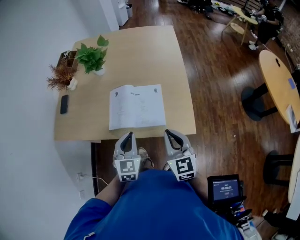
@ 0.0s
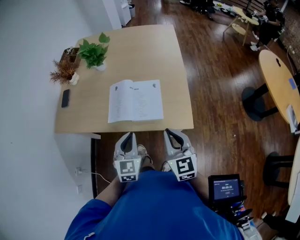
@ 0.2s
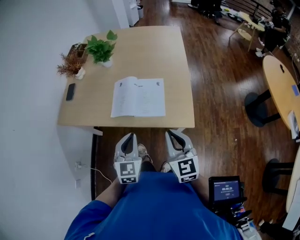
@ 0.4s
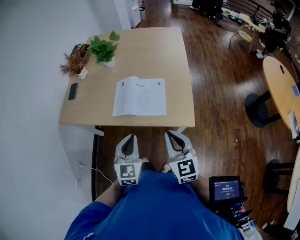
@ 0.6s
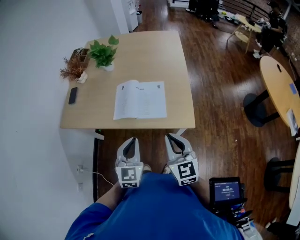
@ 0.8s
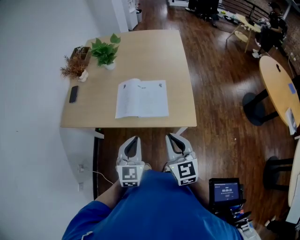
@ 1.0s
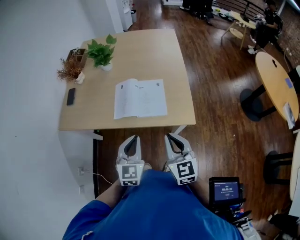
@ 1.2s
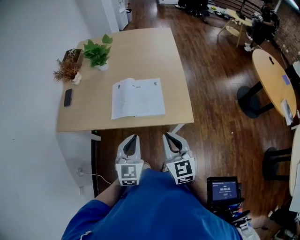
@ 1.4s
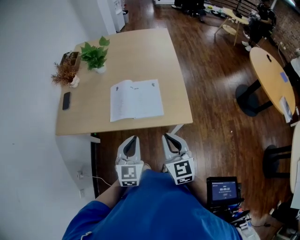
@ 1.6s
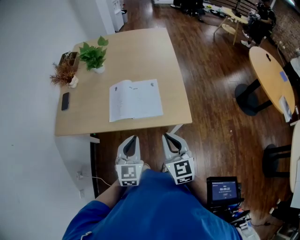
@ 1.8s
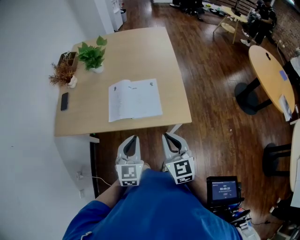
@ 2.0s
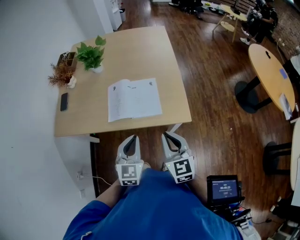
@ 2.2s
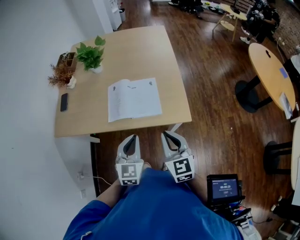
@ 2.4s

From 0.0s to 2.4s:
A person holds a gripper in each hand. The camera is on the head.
From 0.0s to 1.2s: The grippers both shift backward by approximately 10 cm.
From 1.2s to 2.4s: The grippers move only a little.

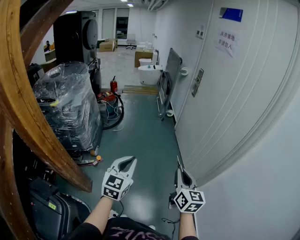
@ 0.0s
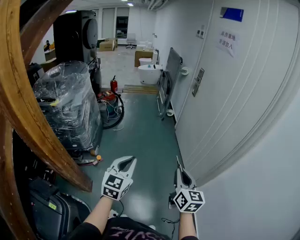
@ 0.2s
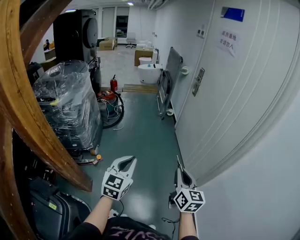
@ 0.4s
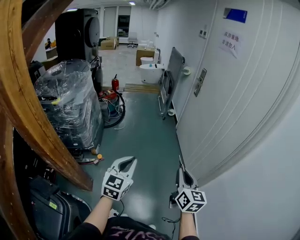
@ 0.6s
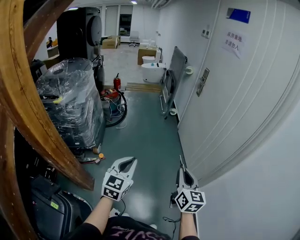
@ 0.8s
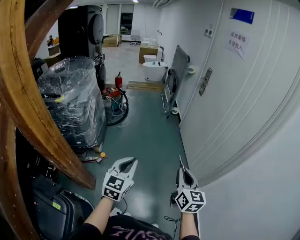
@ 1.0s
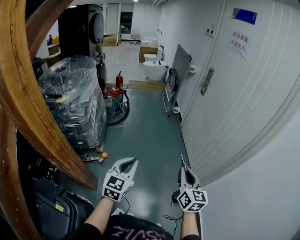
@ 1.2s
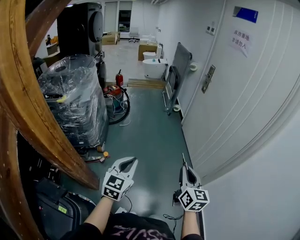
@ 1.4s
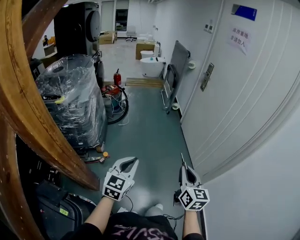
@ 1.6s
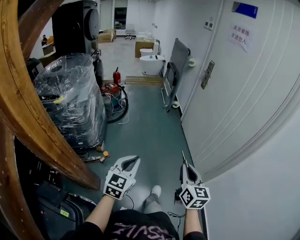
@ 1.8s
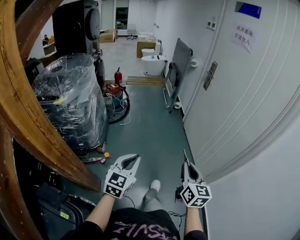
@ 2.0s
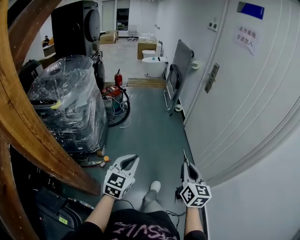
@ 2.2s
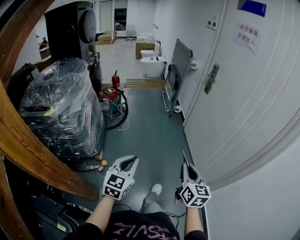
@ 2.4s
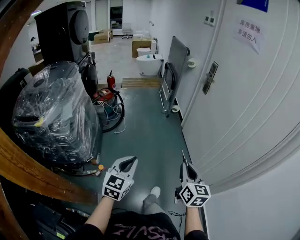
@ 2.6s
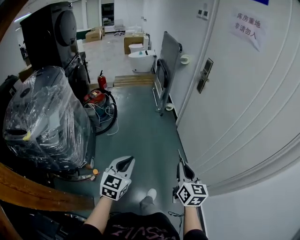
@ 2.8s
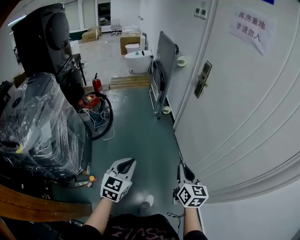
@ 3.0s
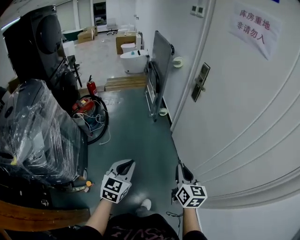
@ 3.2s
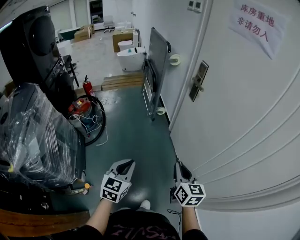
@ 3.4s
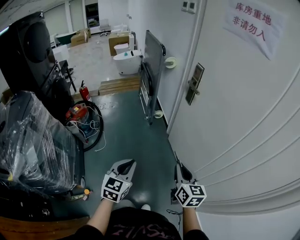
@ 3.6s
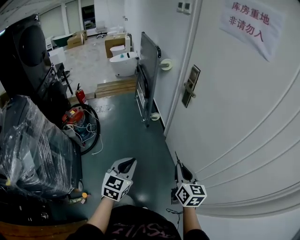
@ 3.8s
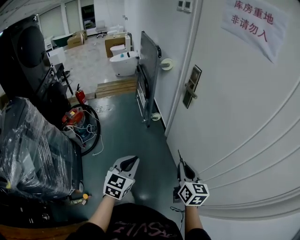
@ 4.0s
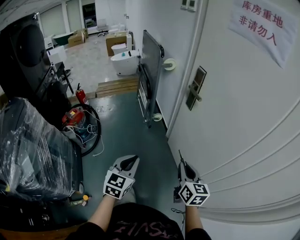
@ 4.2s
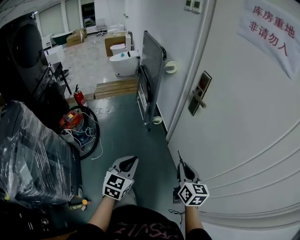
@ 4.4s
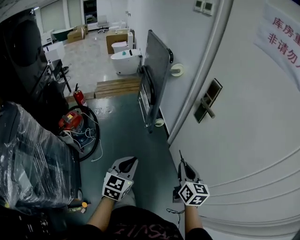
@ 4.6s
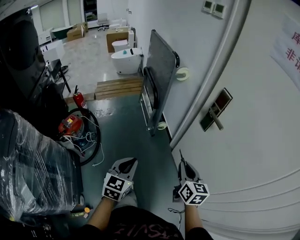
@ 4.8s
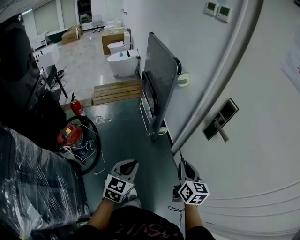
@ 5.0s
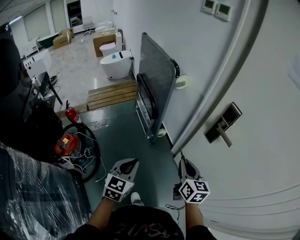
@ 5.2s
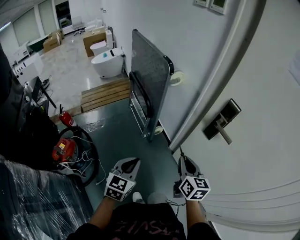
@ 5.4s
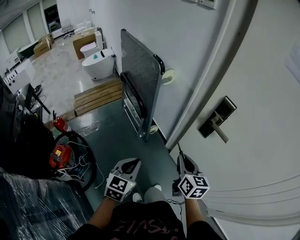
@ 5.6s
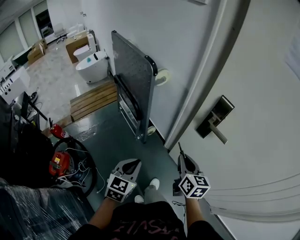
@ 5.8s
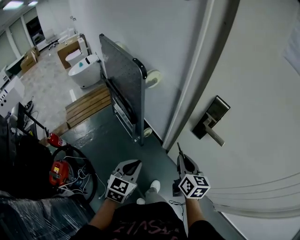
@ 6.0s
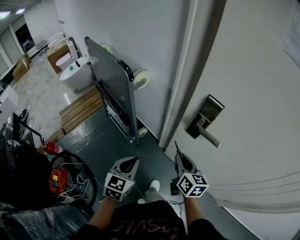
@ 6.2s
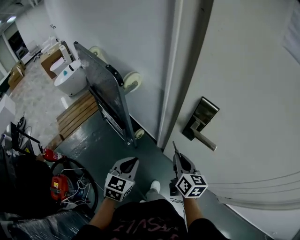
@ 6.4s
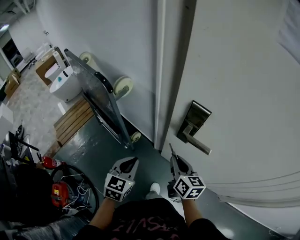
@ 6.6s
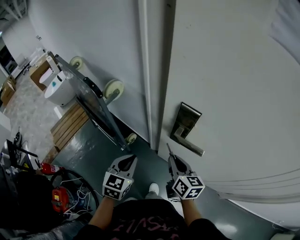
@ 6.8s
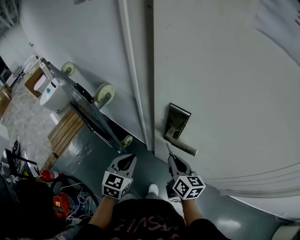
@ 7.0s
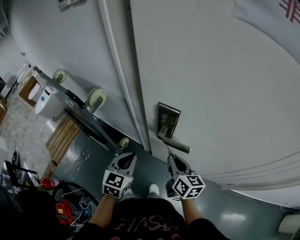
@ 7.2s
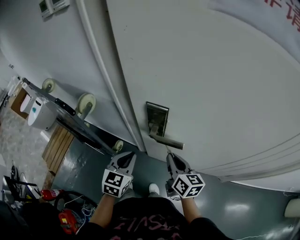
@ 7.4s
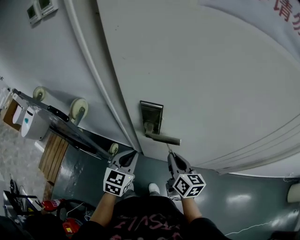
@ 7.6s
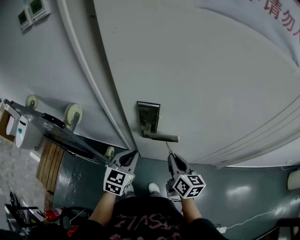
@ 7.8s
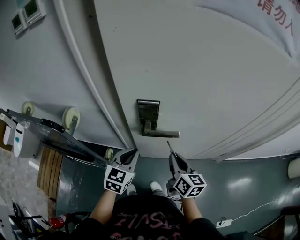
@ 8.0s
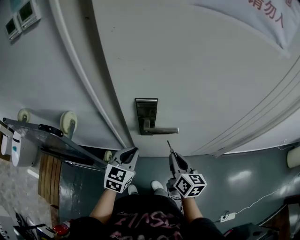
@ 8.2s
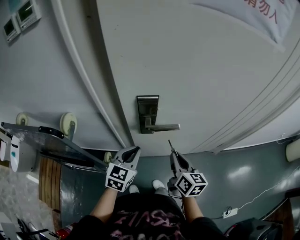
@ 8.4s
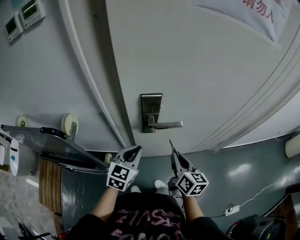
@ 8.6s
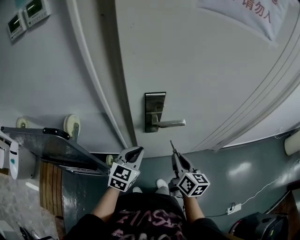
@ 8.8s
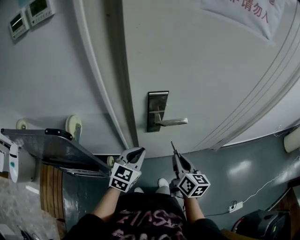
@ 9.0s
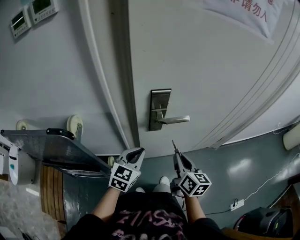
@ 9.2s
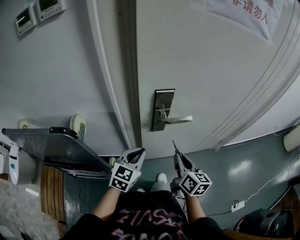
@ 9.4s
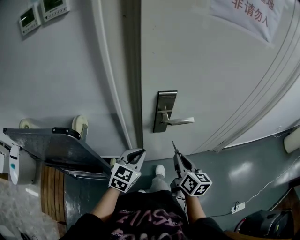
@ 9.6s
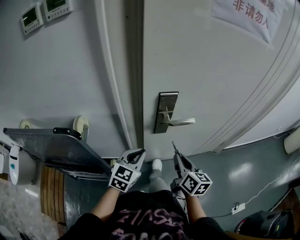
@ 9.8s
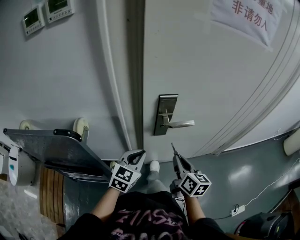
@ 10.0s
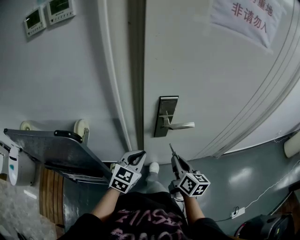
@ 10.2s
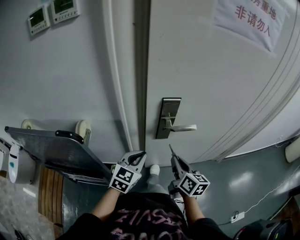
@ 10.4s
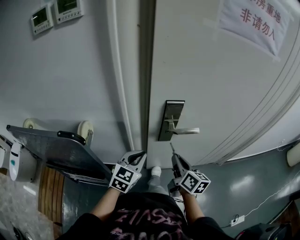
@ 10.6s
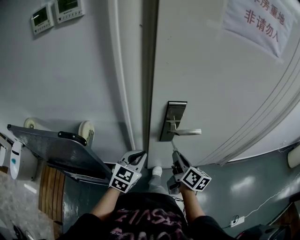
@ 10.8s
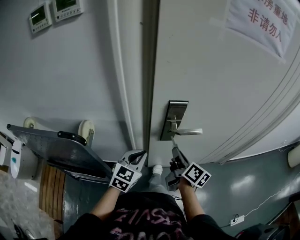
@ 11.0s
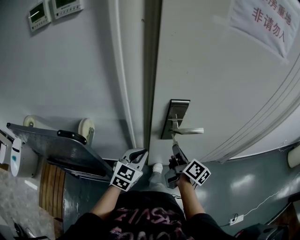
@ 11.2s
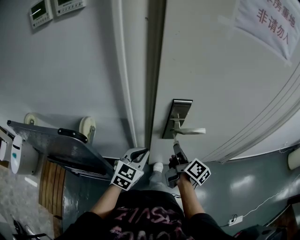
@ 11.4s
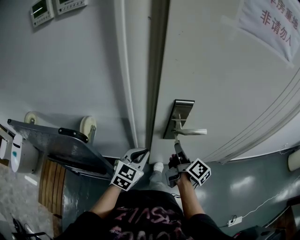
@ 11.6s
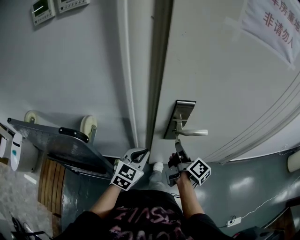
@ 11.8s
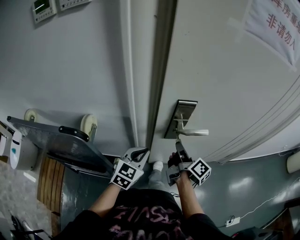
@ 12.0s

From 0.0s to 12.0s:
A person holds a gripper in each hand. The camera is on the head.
From 0.0s to 1.6s: Both grippers move to the left, about 10 cm.
From 1.6s to 3.0s: The grippers both shift forward by some 35 cm.
From 3.0s to 4.4s: The grippers both shift forward by approximately 25 cm.
From 4.4s to 6.0s: The left gripper moves forward, about 30 cm, and changes its angle by roughly 30 degrees, while the right gripper travels forward and to the left by approximately 30 cm, and rotates about 20 degrees.
From 6.0s to 7.6s: The right gripper ends up some 15 cm from where it was, and rotates about 30 degrees. Meanwhile the left gripper ends up some 25 cm from where it was, and swivels about 30 degrees.
From 7.6s to 9.0s: The left gripper swivels some 30 degrees, while the right gripper ends up roughly 10 cm from where it was, and turns by some 30 degrees.
From 9.0s to 10.4s: The right gripper shifts by approximately 5 cm.
From 10.4s to 12.0s: The right gripper goes some 10 cm forward, and rotates around the line of its fingers by some 40 degrees, clockwise from behind.

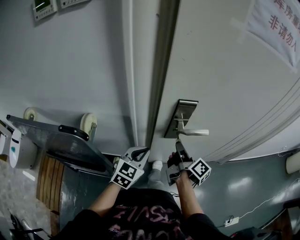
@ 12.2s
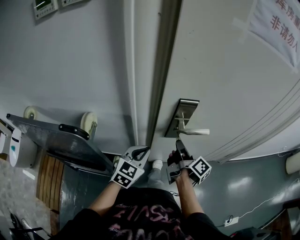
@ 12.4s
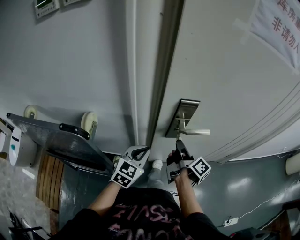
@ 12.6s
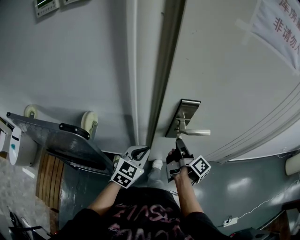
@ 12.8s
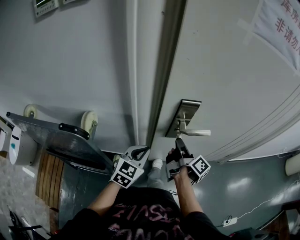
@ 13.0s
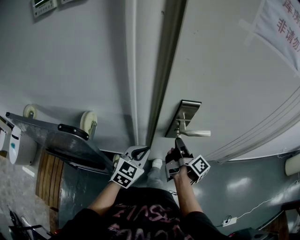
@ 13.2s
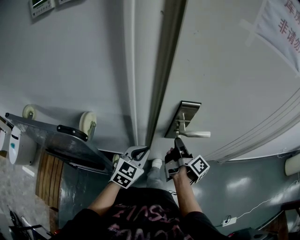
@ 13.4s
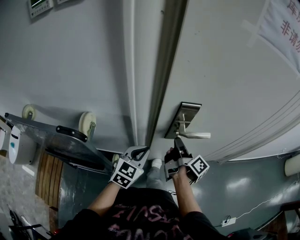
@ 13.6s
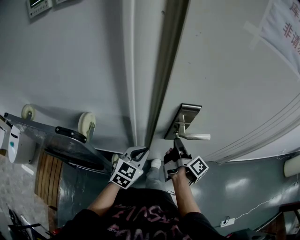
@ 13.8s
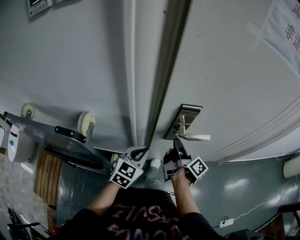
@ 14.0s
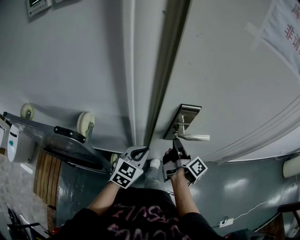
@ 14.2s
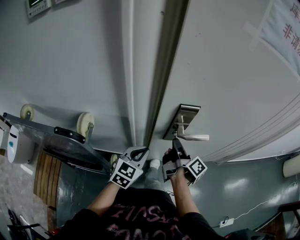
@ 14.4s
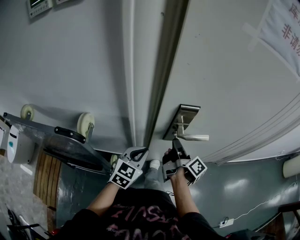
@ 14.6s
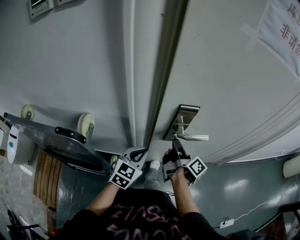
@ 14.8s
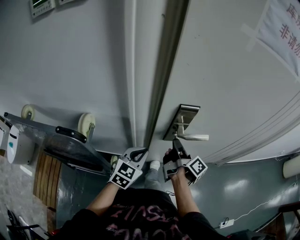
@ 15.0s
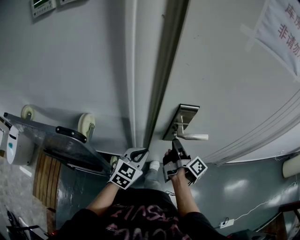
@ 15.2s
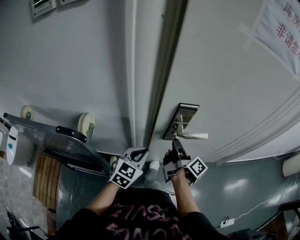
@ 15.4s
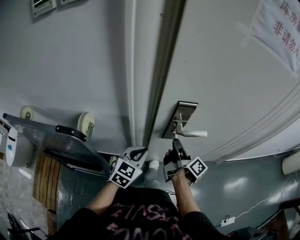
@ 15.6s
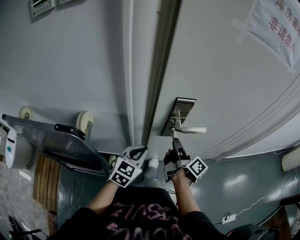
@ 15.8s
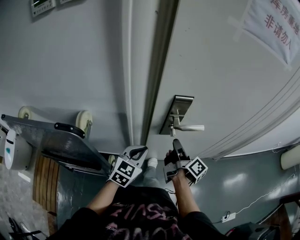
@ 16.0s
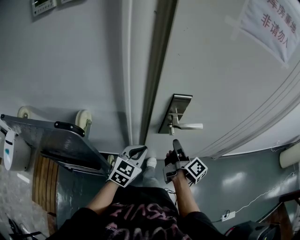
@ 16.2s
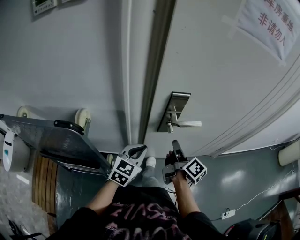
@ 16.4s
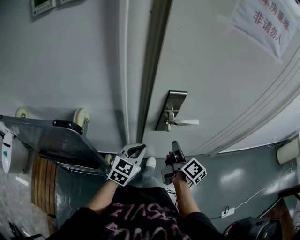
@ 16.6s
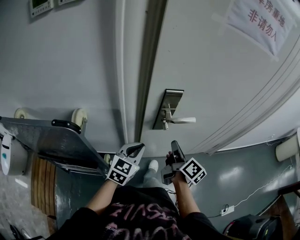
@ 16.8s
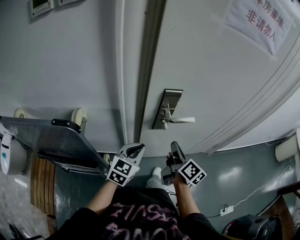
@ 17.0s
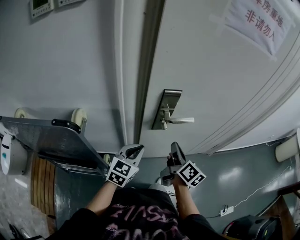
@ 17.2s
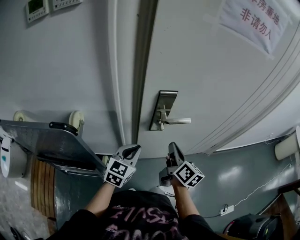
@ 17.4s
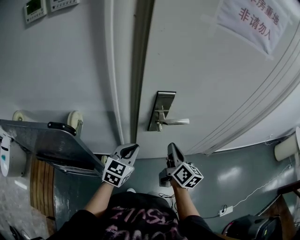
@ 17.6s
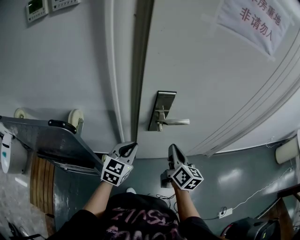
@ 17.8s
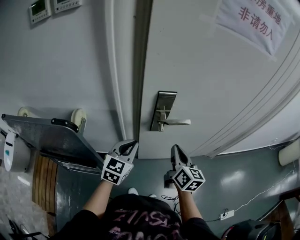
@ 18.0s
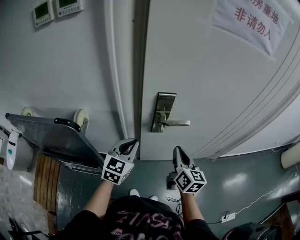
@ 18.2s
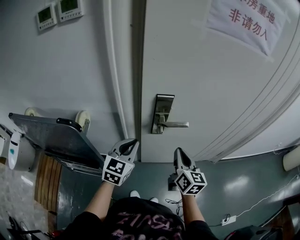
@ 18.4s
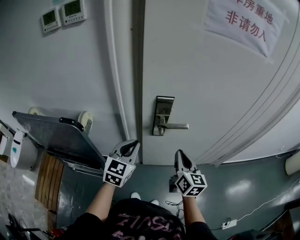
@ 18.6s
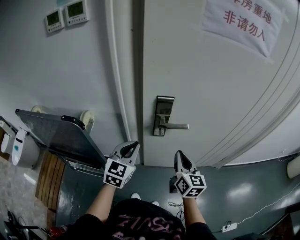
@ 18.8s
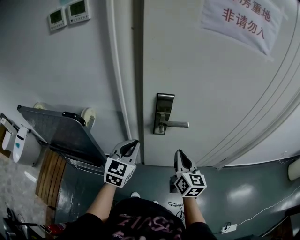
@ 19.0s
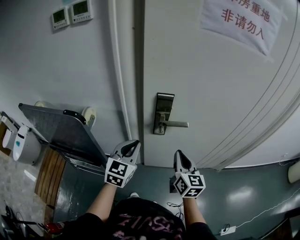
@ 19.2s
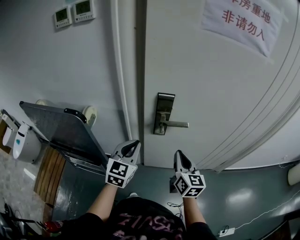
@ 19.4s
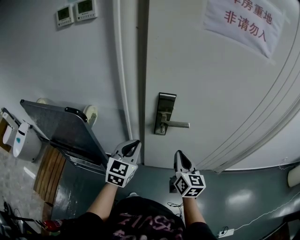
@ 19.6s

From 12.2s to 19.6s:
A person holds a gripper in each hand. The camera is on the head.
From 12.2s to 13.6s: There are only small adjustments of the grippers.
From 13.6s to 15.2s: Neither gripper changes place.
From 15.2s to 16.6s: The right gripper goes about 5 cm backward, and swivels approximately 20 degrees.
From 16.6s to 18.2s: The left gripper travels upward by roughly 5 cm; the right gripper moves roughly 5 cm, and rotates about 40 degrees.
From 18.2s to 19.6s: The grippers stay close to where they were, moving slightly.

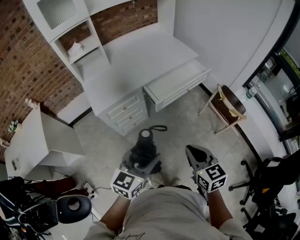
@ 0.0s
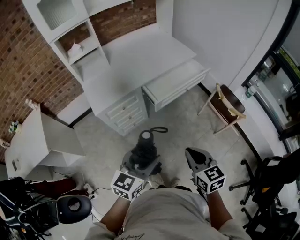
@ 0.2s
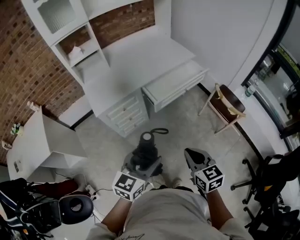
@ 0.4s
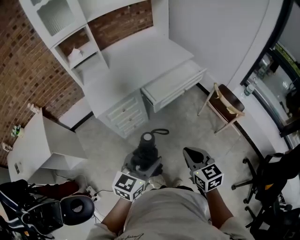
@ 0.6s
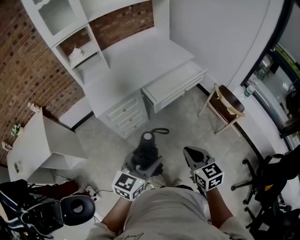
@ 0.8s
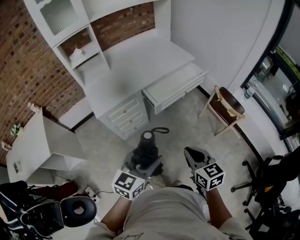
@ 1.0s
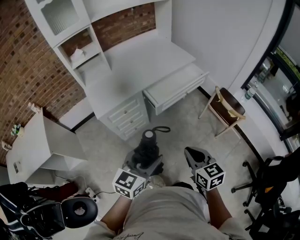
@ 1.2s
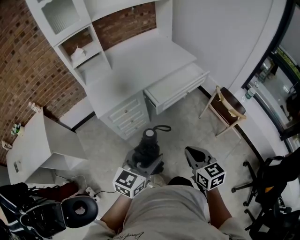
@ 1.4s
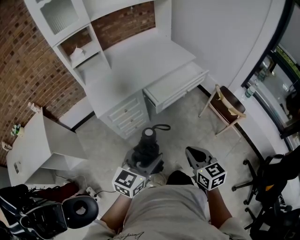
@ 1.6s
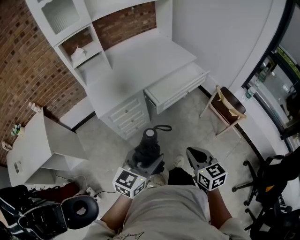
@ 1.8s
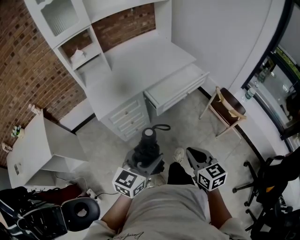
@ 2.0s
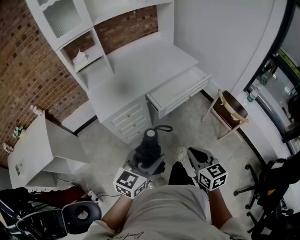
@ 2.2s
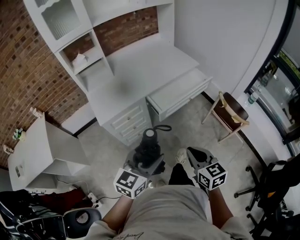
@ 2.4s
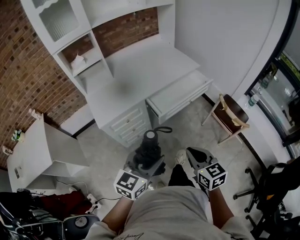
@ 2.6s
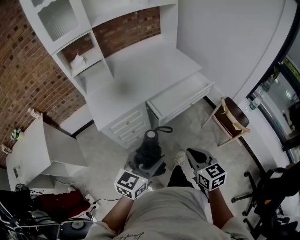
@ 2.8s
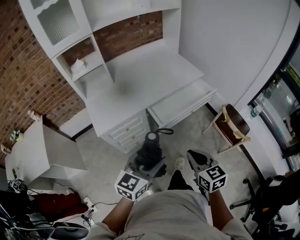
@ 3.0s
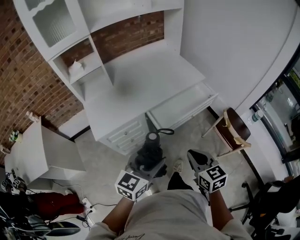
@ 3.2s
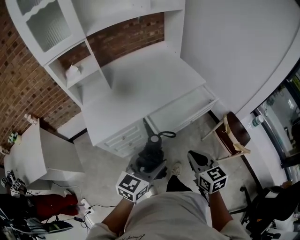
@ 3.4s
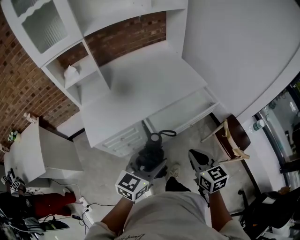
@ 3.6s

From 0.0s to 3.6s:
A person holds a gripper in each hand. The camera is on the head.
From 0.0s to 1.8s: The grippers make only small movements.
From 1.8s to 3.6s: Both grippers move forward, some 25 cm.
